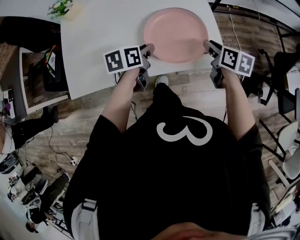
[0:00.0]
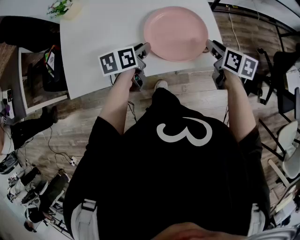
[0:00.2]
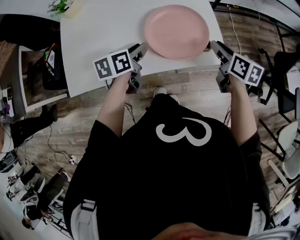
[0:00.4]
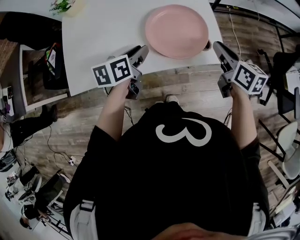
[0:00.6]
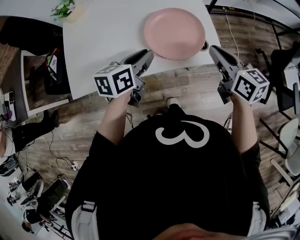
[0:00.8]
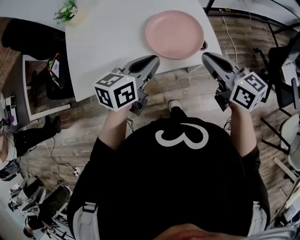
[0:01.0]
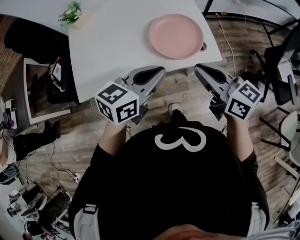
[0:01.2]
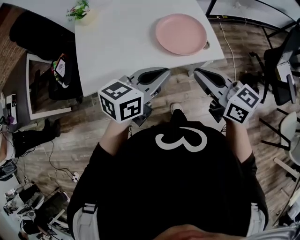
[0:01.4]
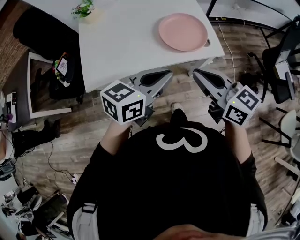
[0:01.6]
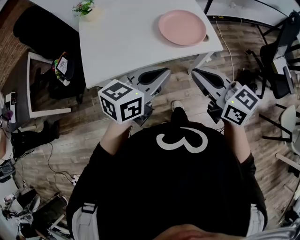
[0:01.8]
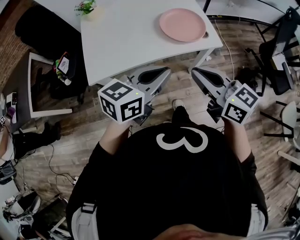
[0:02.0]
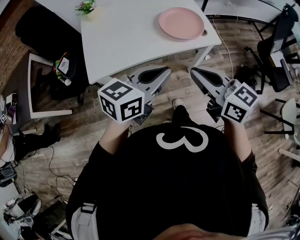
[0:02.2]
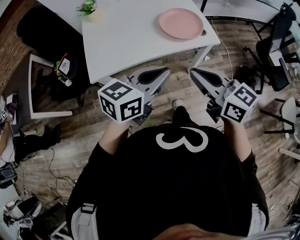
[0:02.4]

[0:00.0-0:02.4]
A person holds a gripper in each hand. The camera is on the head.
0:00.0 to 0:01.2: The right gripper goes about 25 cm upward, backward and to the left, and turns by some 40 degrees; the left gripper goes about 25 cm upward and backward, and changes its angle by approximately 40 degrees.
0:01.2 to 0:02.4: The left gripper is displaced backward by about 15 cm. Meanwhile the right gripper moves backward and to the left, approximately 20 cm.

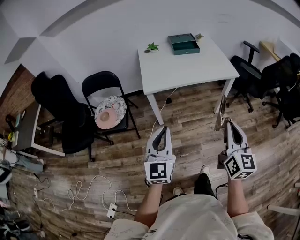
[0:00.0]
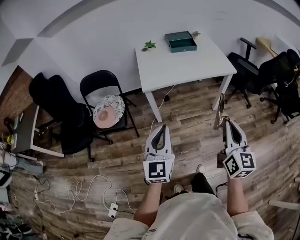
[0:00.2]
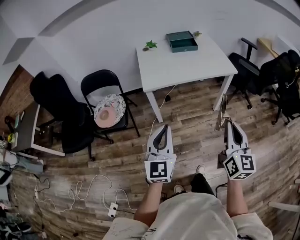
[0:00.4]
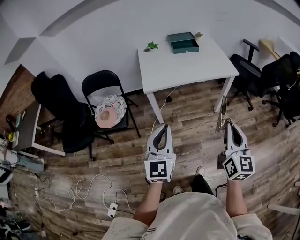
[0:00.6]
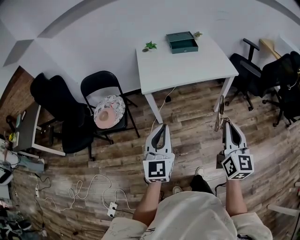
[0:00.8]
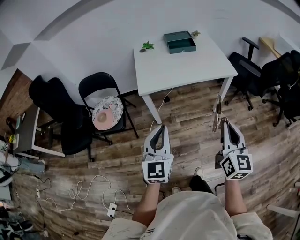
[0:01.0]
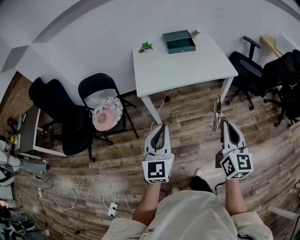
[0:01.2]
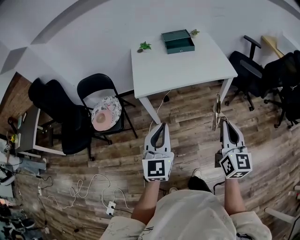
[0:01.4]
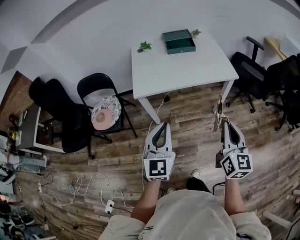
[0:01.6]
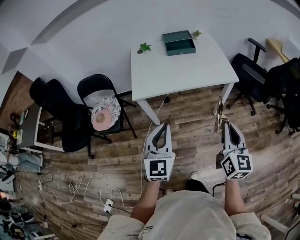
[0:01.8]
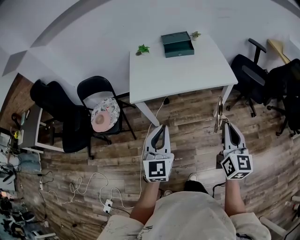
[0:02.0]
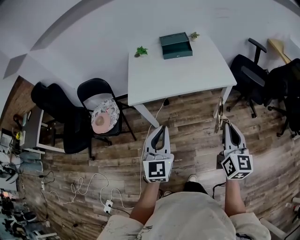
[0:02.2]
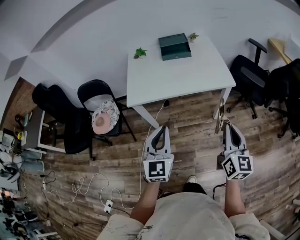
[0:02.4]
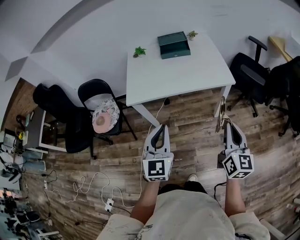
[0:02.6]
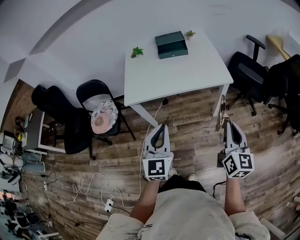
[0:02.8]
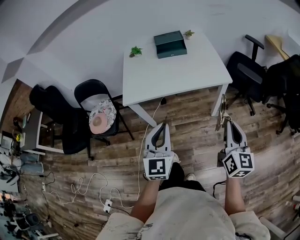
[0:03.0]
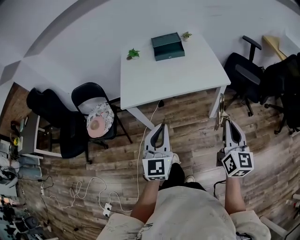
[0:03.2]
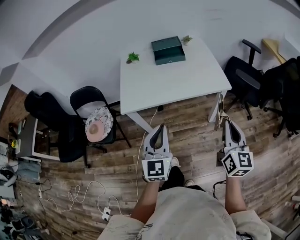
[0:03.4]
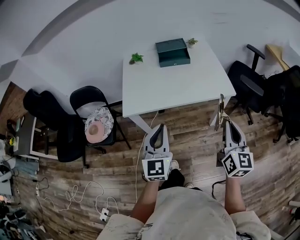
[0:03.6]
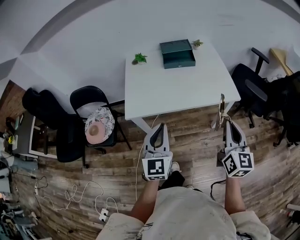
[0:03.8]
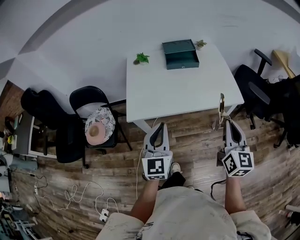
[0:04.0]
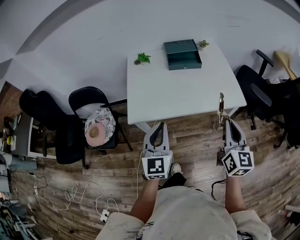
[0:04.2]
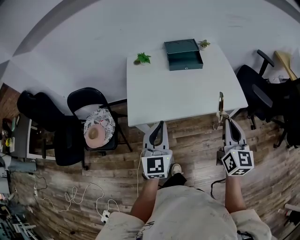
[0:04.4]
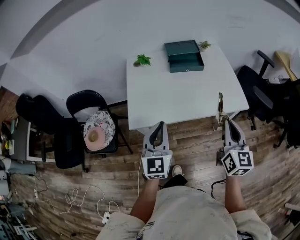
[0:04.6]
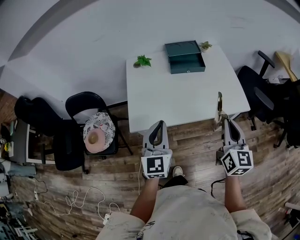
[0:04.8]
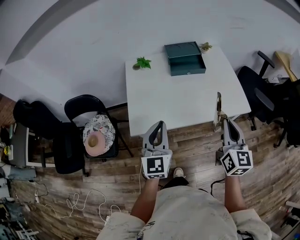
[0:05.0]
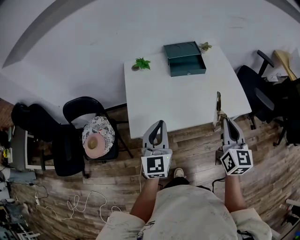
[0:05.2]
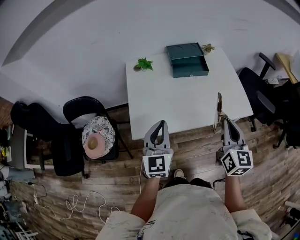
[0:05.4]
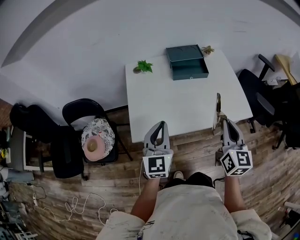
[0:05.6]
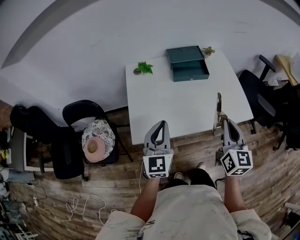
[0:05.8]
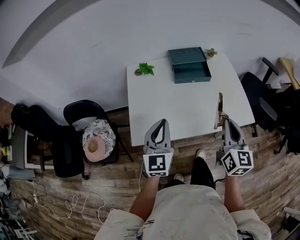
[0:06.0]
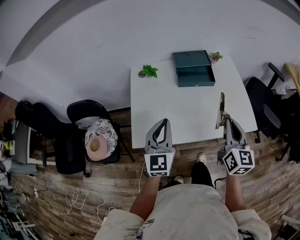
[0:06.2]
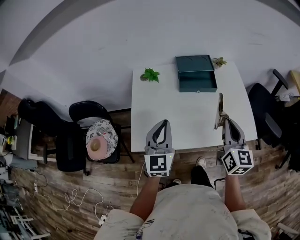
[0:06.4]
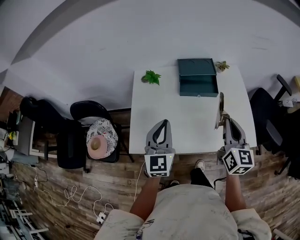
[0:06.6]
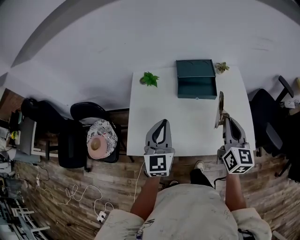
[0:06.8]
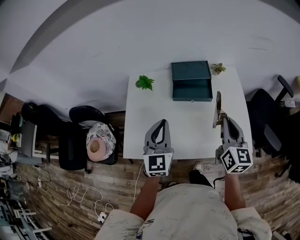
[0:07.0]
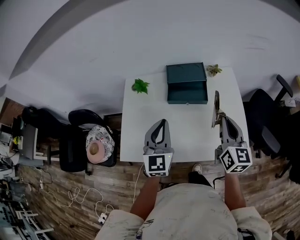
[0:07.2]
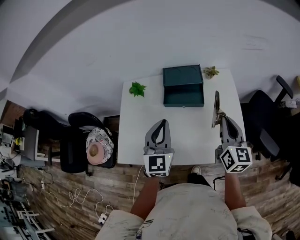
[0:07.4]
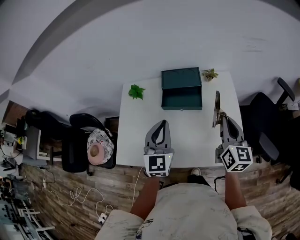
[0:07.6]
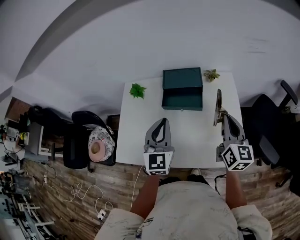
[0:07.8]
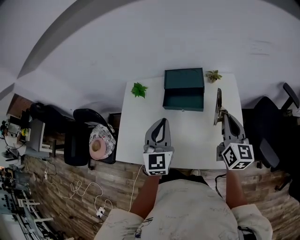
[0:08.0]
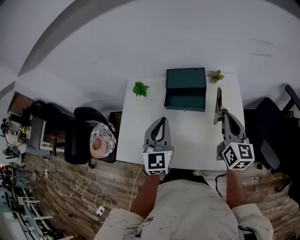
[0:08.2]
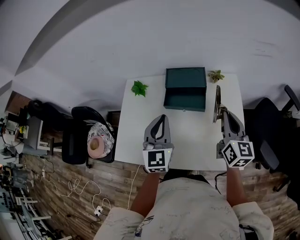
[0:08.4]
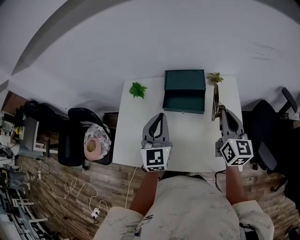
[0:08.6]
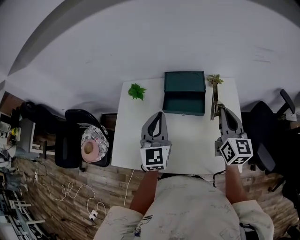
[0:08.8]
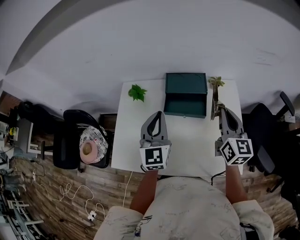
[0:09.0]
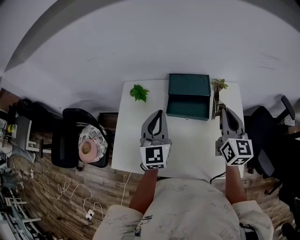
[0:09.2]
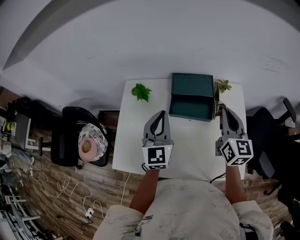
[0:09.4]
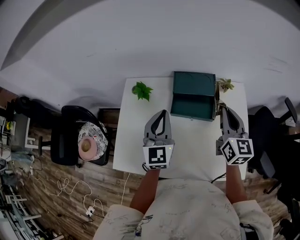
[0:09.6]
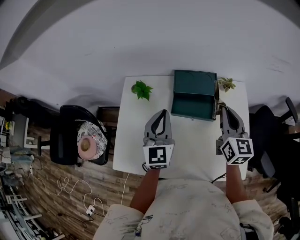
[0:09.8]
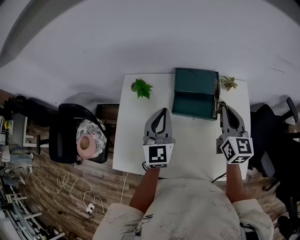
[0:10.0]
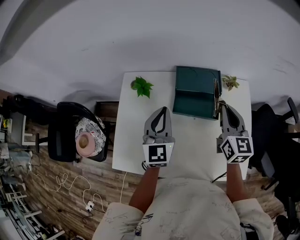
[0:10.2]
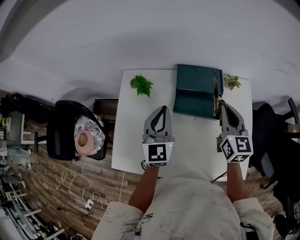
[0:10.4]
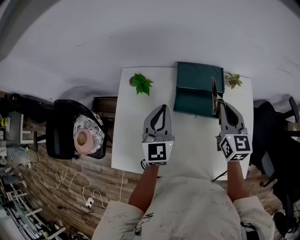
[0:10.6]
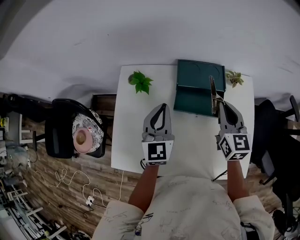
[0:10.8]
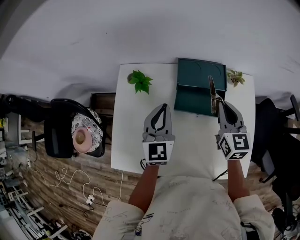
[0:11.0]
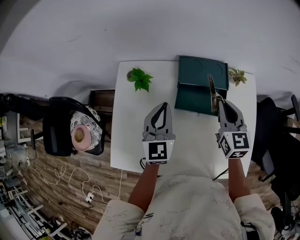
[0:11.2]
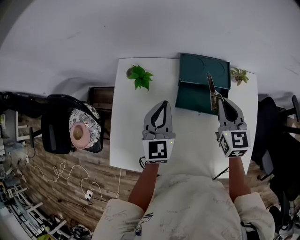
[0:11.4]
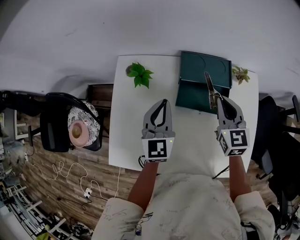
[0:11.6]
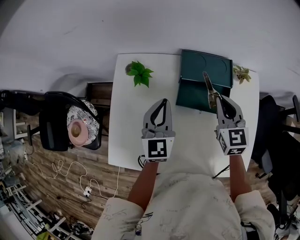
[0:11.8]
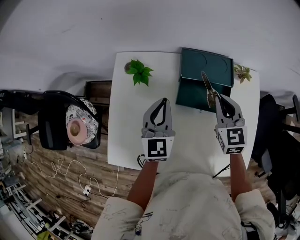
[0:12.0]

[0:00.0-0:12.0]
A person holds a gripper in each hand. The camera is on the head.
0:00.0 to 0:01.6: The grippers both shift forward and to the right by about 15 cm.
0:01.6 to 0:03.0: The two grippers go about 15 cm to the right and forward.
0:03.0 to 0:04.4: Both grippers move forward and to the left, about 25 cm.
0:04.4 to 0:06.0: The grippers both shift forward by approximately 15 cm.
0:06.0 to 0:07.6: The left gripper is displaced to the right and forward by some 25 cm, while the right gripper is displaced forward and to the right by some 25 cm.
0:07.6 to 0:09.0: Both grippers travel together forward, some 10 cm.
0:09.0 to 0:10.4: The left gripper travels forward and downward by some 10 cm, while the right gripper is displaced forward and to the left by about 10 cm.
0:10.4 to 0:12.0: The right gripper heads downward and to the left, covering roughly 10 cm, and turns by roughly 20 degrees. The left gripper moves downward, some 5 cm.

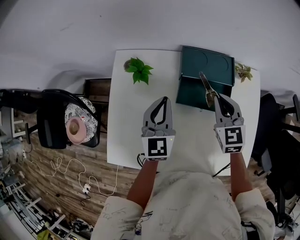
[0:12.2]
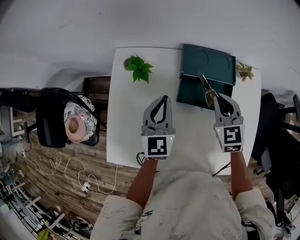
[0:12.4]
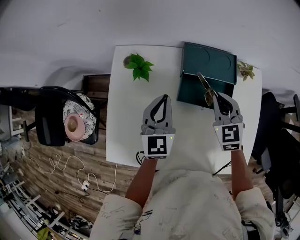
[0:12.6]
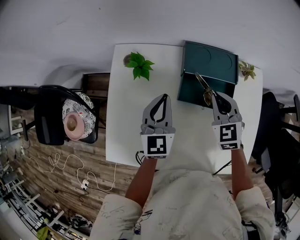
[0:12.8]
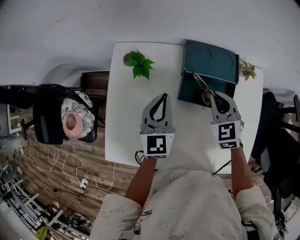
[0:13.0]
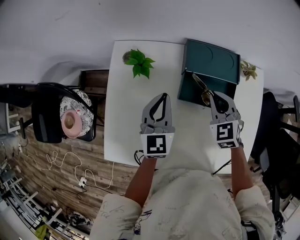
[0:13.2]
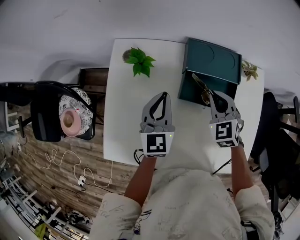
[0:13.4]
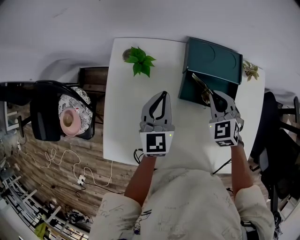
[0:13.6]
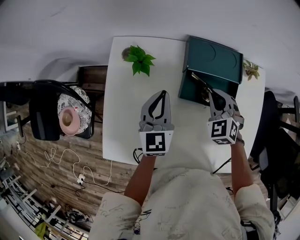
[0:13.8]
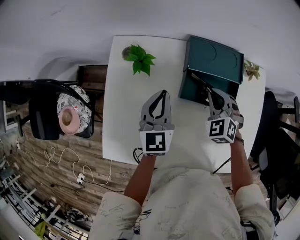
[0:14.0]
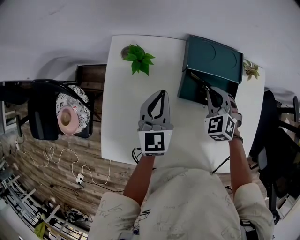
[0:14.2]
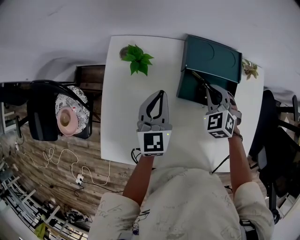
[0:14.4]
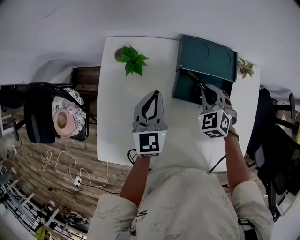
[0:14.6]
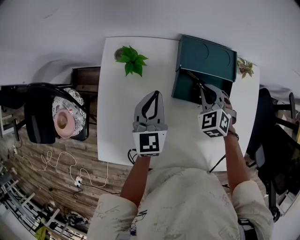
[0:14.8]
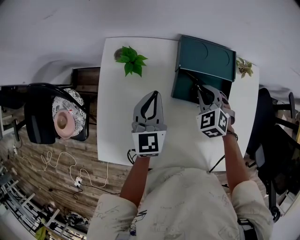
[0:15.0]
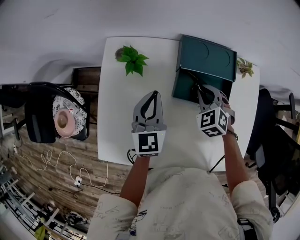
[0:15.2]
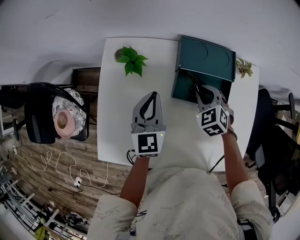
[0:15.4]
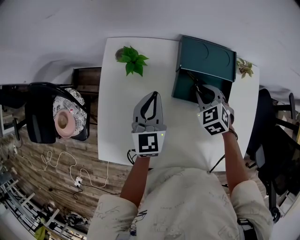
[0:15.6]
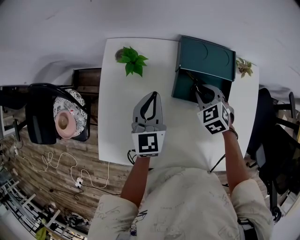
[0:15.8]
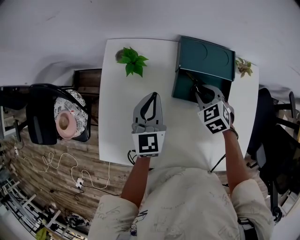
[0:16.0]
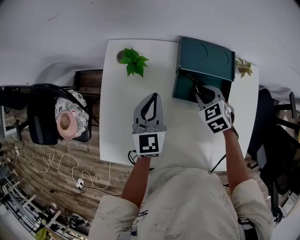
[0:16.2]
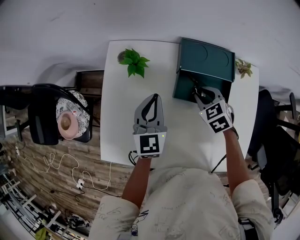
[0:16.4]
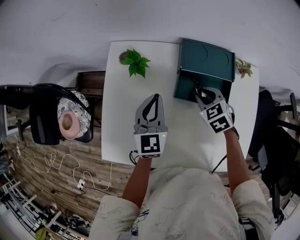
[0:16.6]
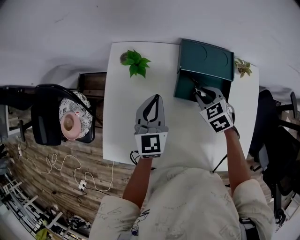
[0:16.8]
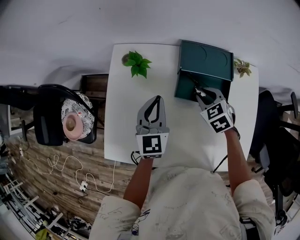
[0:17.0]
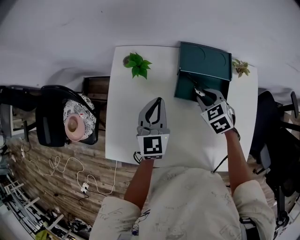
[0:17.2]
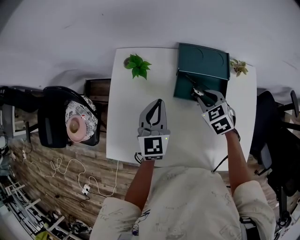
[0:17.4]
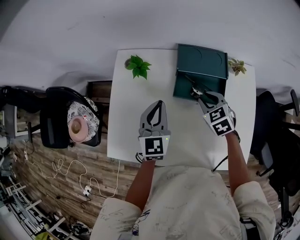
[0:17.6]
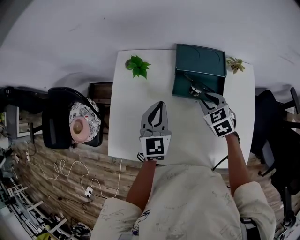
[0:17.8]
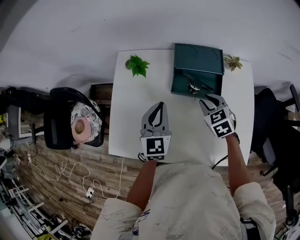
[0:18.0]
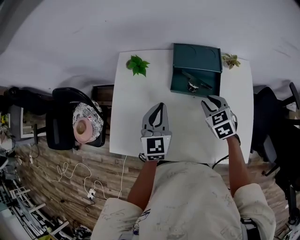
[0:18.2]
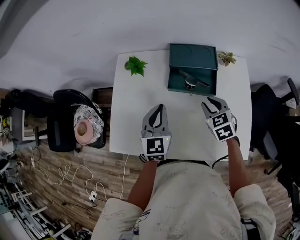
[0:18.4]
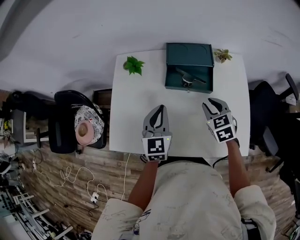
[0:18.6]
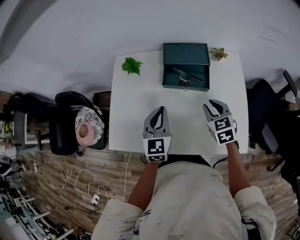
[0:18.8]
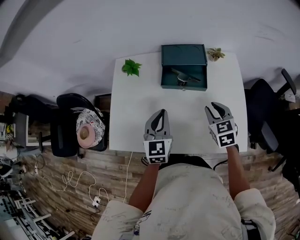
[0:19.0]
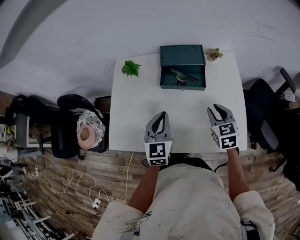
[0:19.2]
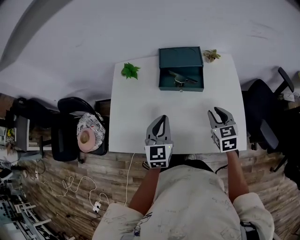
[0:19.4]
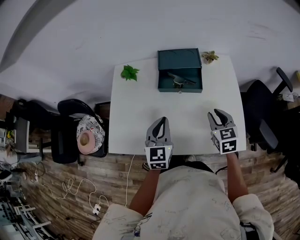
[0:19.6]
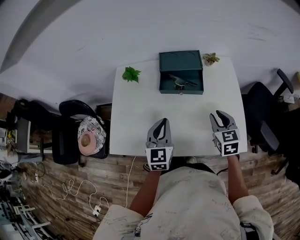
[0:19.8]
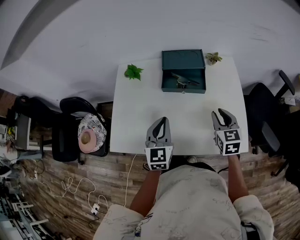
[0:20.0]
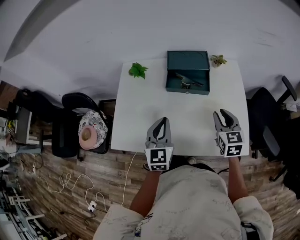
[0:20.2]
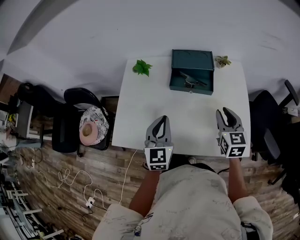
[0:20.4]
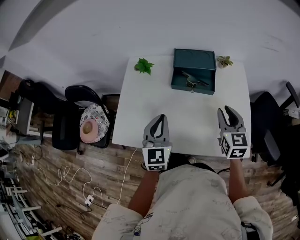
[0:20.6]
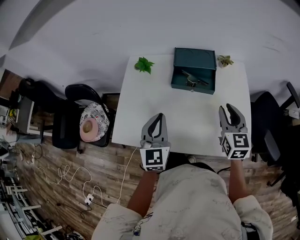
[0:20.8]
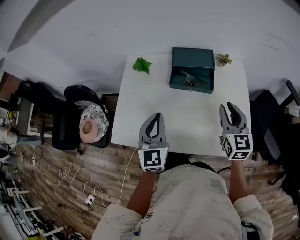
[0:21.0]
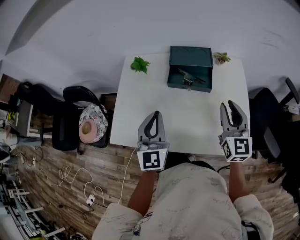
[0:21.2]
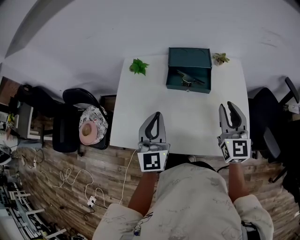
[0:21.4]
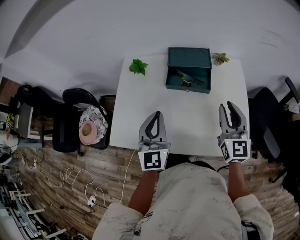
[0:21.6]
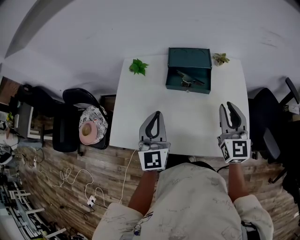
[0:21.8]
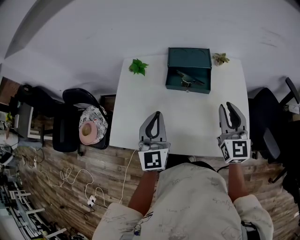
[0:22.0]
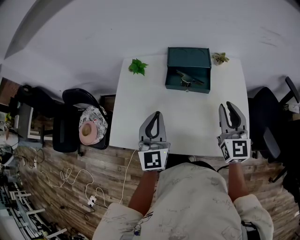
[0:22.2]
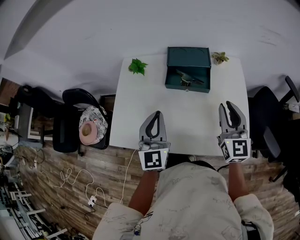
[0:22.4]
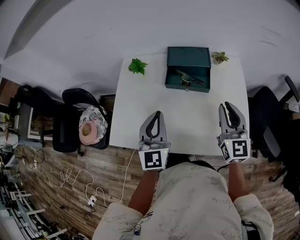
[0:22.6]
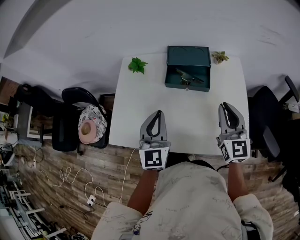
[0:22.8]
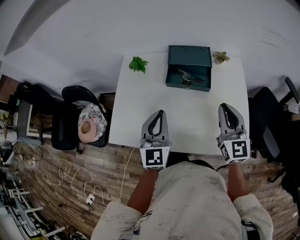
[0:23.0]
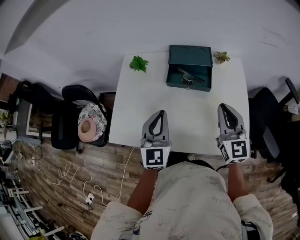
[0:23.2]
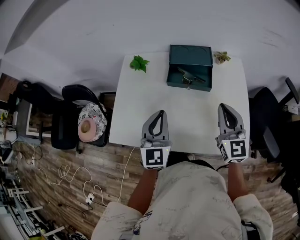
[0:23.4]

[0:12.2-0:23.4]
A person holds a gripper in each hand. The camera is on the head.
0:12.2 to 0:13.8: The right gripper moves downward, approximately 10 cm, and rotates roughly 30 degrees.
0:13.8 to 0:15.4: The grippers move only a little.
0:15.4 to 0:17.0: The grippers make only small movements.
0:17.0 to 0:18.6: The left gripper heads backward, covering roughly 10 cm; the right gripper moves backward and to the right, about 15 cm.
0:18.6 to 0:20.2: The left gripper shifts approximately 10 cm backward, while the right gripper shifts approximately 10 cm backward and to the right, and swivels about 20 degrees.
0:20.2 to 0:21.8: The right gripper heads upward, covering approximately 10 cm, and changes its angle by some 20 degrees. Meanwhile the left gripper moves upward, some 5 cm.
0:21.8 to 0:23.4: The right gripper closes up.
